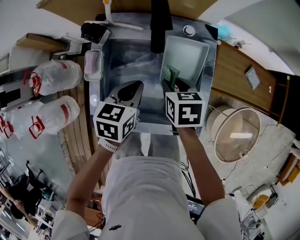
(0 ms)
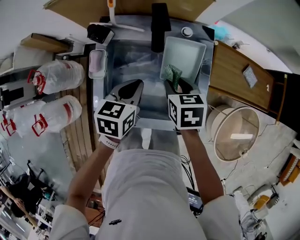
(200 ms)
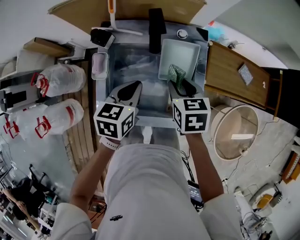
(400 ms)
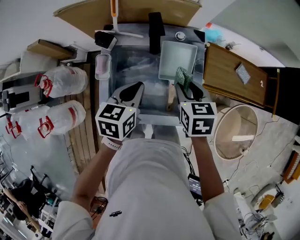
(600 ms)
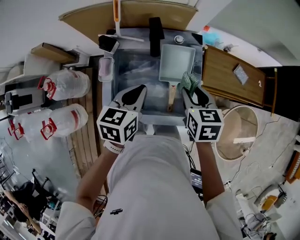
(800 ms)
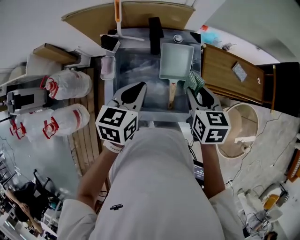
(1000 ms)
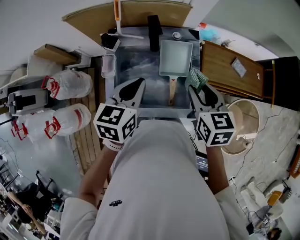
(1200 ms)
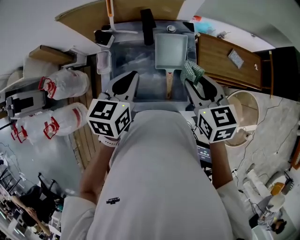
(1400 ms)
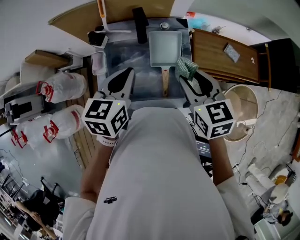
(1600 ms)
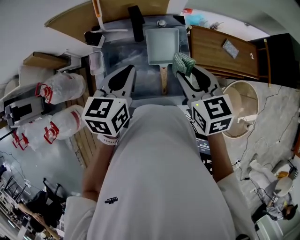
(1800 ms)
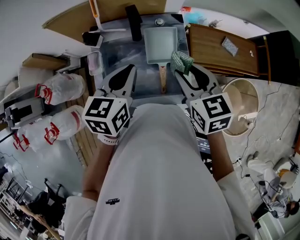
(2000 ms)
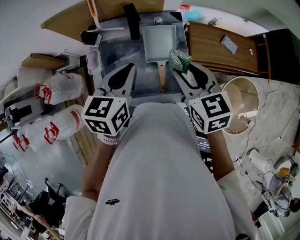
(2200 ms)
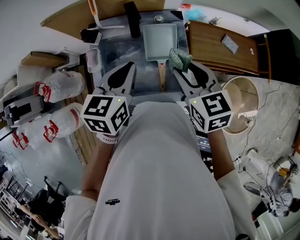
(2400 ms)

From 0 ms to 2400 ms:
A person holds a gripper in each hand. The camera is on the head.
From 0 ms to 1200 ms: Both grippers travel together upward, roughly 20 cm. The right gripper rotates some 20 degrees.
From 1200 ms to 2400 ms: The grippers stay close to where they were, moving slightly.

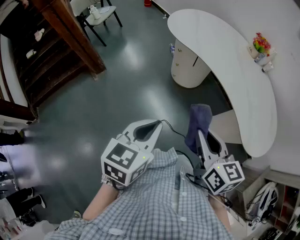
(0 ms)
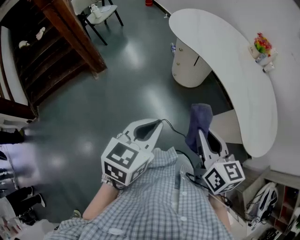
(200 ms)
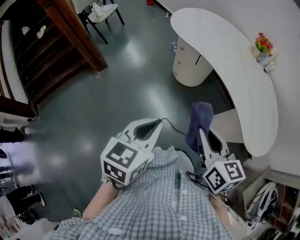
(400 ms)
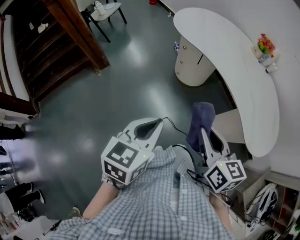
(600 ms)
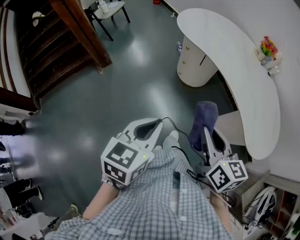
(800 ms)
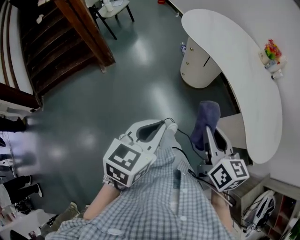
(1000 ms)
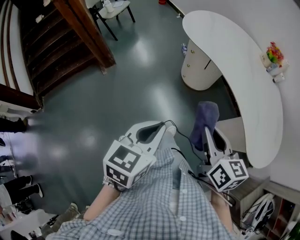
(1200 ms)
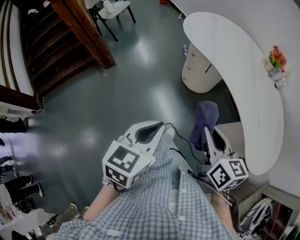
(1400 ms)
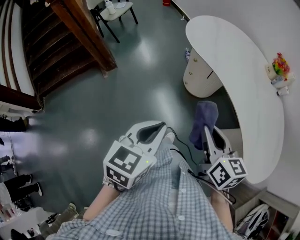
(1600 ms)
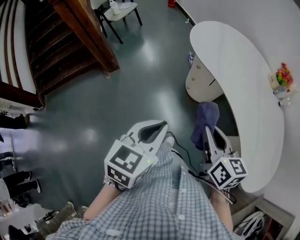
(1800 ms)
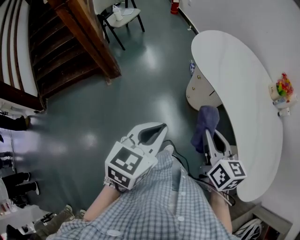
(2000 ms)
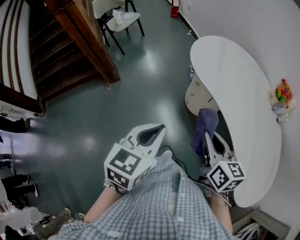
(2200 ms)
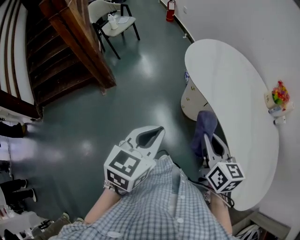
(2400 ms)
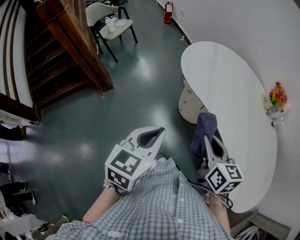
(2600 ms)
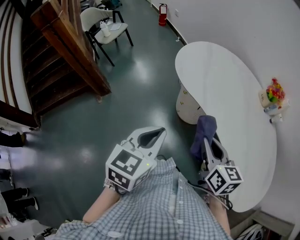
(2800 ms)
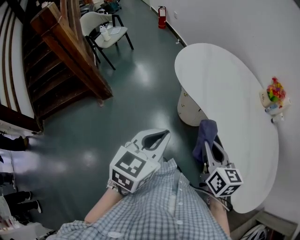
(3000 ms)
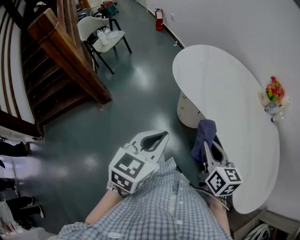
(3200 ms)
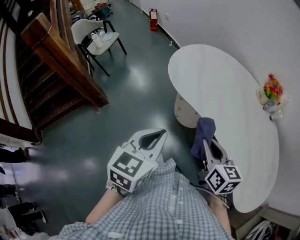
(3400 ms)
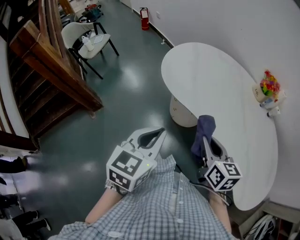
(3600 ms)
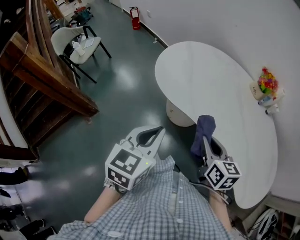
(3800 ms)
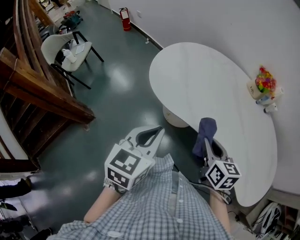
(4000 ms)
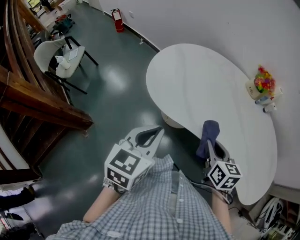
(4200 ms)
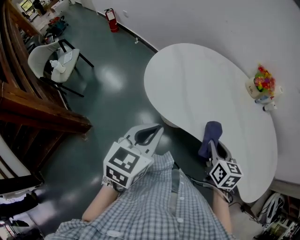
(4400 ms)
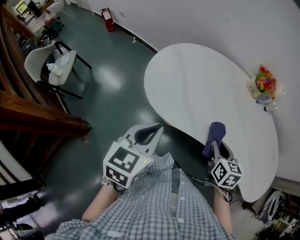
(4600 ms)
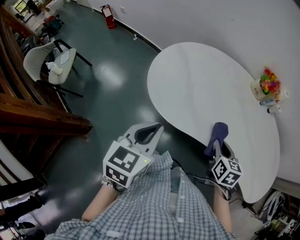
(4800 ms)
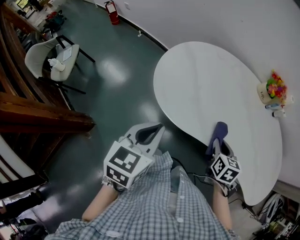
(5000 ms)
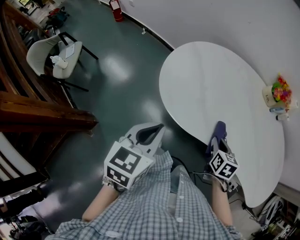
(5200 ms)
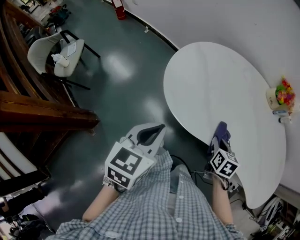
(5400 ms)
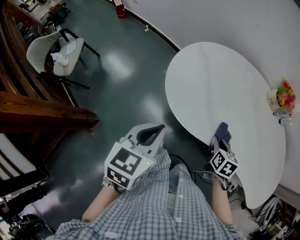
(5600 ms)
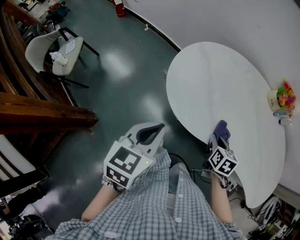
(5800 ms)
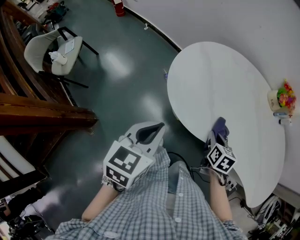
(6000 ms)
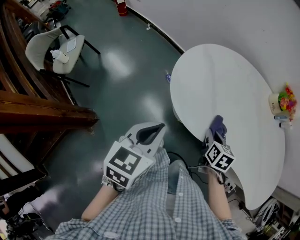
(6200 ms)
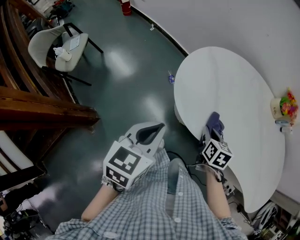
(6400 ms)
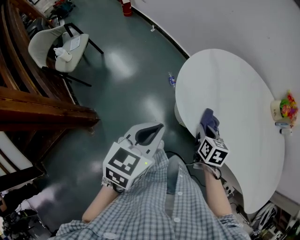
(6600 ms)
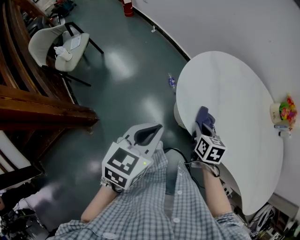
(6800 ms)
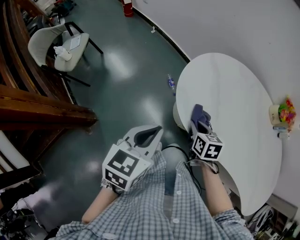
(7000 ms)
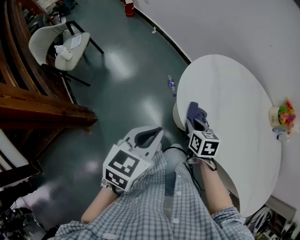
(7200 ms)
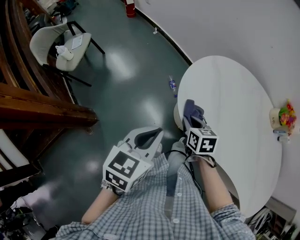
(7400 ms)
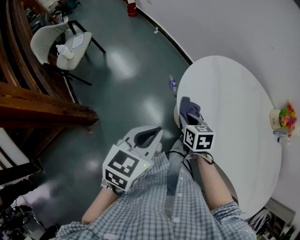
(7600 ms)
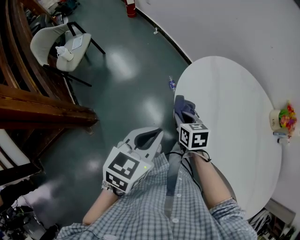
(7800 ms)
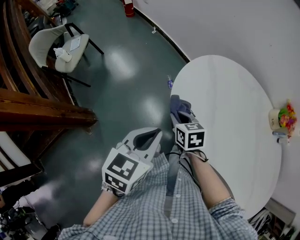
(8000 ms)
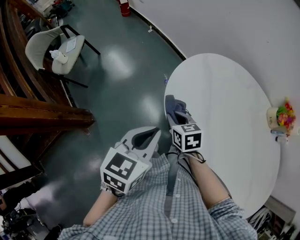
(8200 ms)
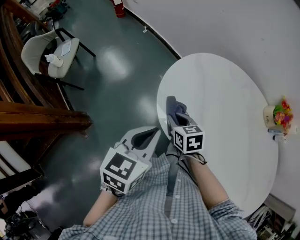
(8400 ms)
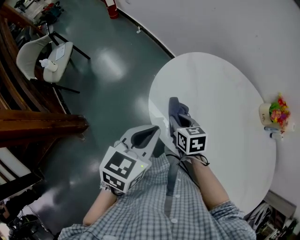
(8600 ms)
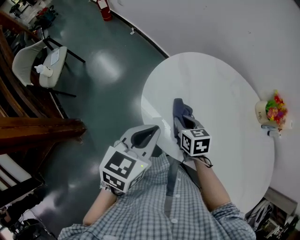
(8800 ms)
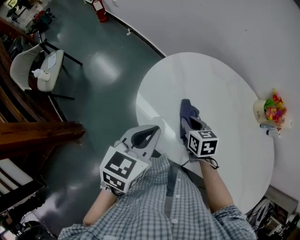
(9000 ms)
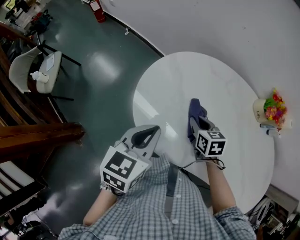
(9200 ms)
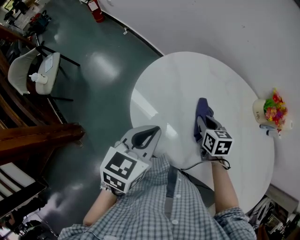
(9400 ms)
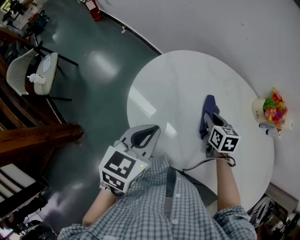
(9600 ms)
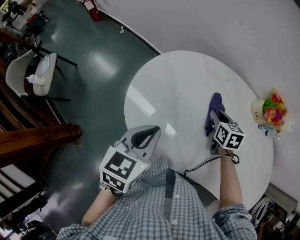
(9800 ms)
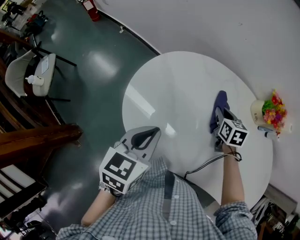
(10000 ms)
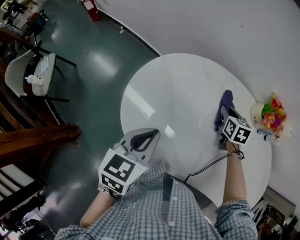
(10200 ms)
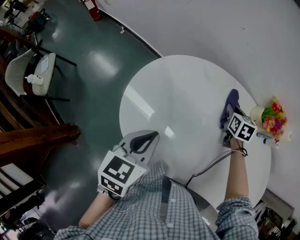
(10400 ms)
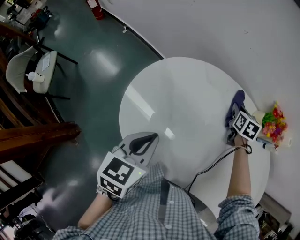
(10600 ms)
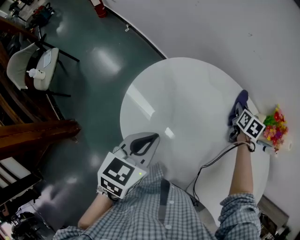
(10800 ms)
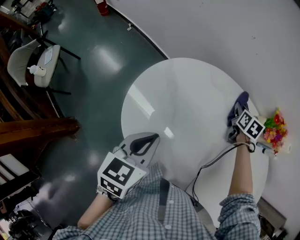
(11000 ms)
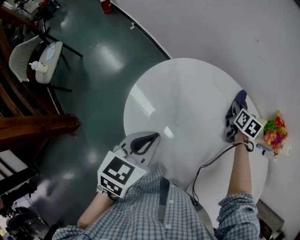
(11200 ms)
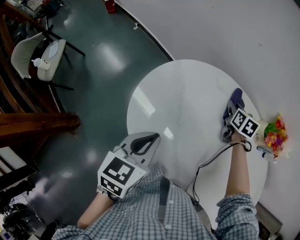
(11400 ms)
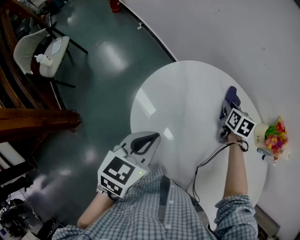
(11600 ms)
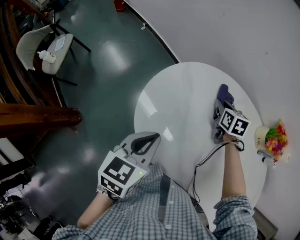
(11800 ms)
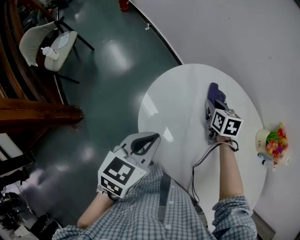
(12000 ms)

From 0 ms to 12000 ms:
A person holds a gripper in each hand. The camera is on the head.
From 0 ms to 1600 ms: The grippers both shift forward by some 10 cm.
From 1600 ms to 3000 ms: Both grippers move forward, some 15 cm.
From 3000 ms to 4400 ms: Both grippers move forward, roughly 20 cm. The left gripper swivels some 20 degrees. Meanwhile the right gripper rotates about 30 degrees.
From 4400 ms to 6000 ms: The right gripper travels to the left, downward and forward by about 20 cm; the left gripper goes approximately 15 cm to the left and forward.
From 6000 ms to 7600 ms: The right gripper travels to the left by approximately 20 cm, and changes its angle by some 30 degrees.
From 7600 ms to 9000 ms: The right gripper shifts some 15 cm to the right; the left gripper heads to the right and forward, covering about 15 cm.
From 9000 ms to 10400 ms: The right gripper moves to the right and forward, some 30 cm, and turns by about 30 degrees. Meanwhile the left gripper moves forward and to the right, about 10 cm.
From 10400 ms to 12000 ms: The right gripper goes approximately 20 cm to the left, and turns by some 20 degrees, while the left gripper changes place by roughly 5 cm.

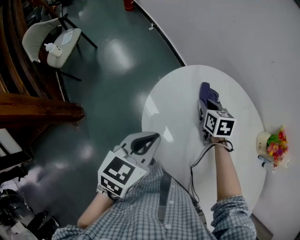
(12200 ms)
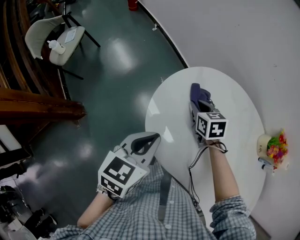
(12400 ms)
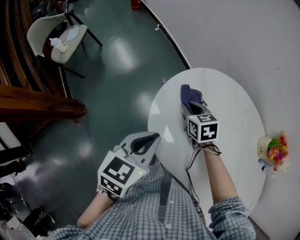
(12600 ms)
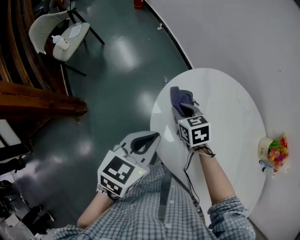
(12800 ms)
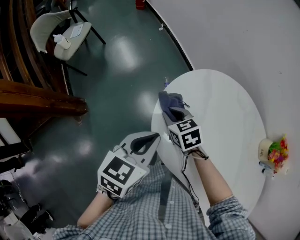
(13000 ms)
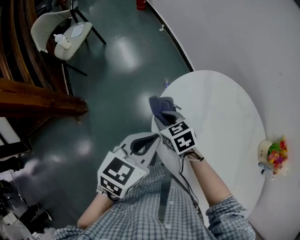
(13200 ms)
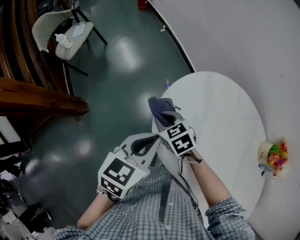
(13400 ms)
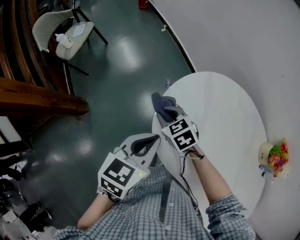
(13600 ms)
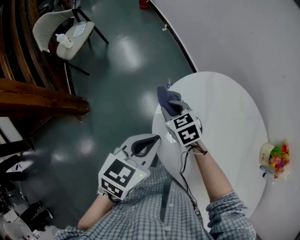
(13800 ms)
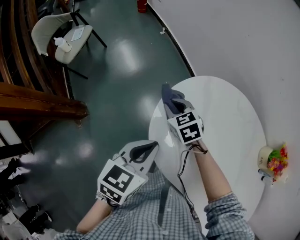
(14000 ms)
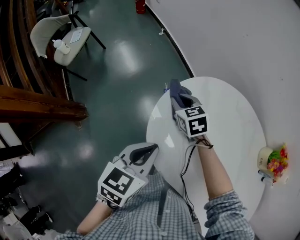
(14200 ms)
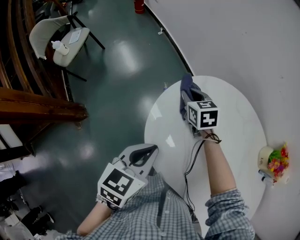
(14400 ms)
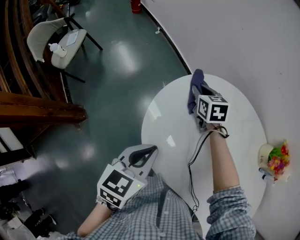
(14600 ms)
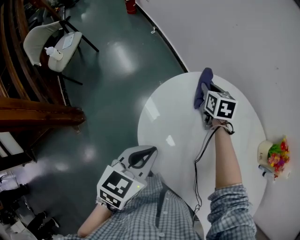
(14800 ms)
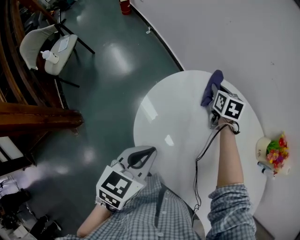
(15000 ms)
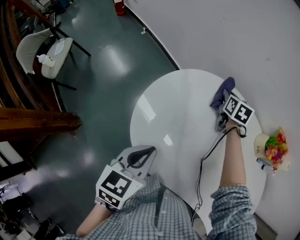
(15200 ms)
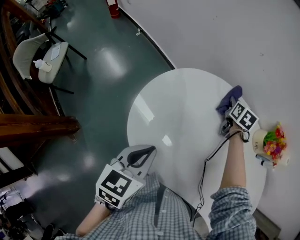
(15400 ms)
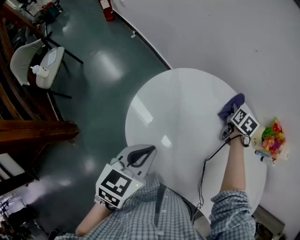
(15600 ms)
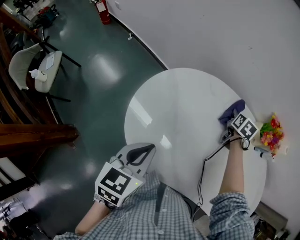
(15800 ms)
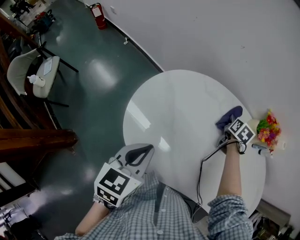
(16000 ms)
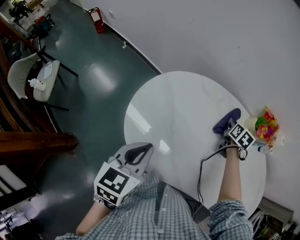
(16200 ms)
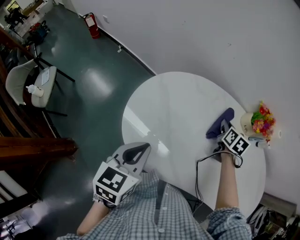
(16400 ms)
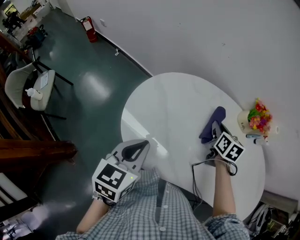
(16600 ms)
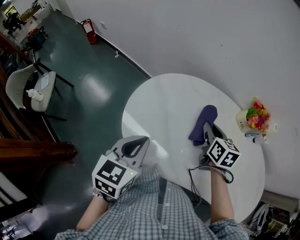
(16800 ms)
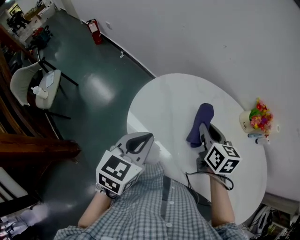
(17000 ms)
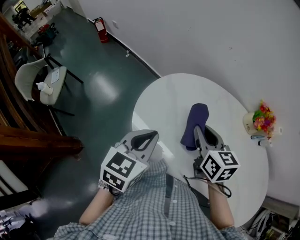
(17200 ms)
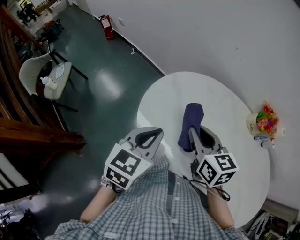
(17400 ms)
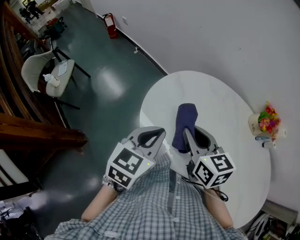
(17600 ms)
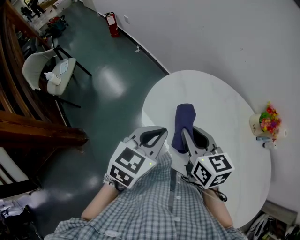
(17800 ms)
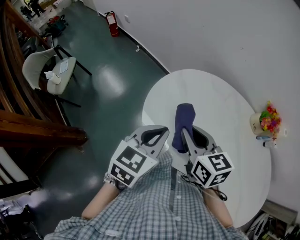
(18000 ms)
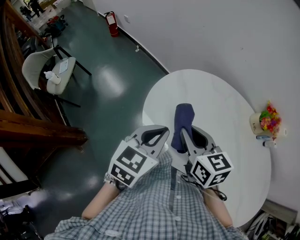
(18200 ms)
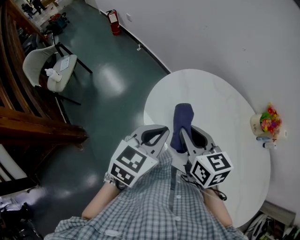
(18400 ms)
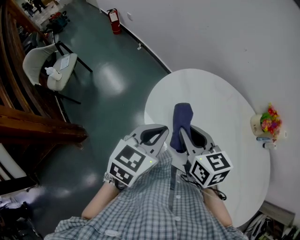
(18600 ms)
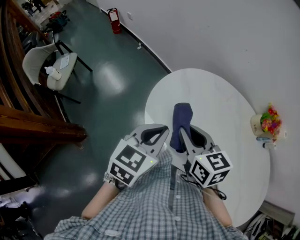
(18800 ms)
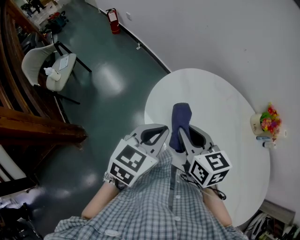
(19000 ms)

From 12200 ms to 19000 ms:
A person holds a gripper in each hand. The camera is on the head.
From 12200 ms to 13600 ms: The right gripper shifts roughly 25 cm to the left, and swivels roughly 40 degrees.
From 13600 ms to 15000 ms: The right gripper changes place by approximately 35 cm, and rotates roughly 50 degrees; the left gripper moves some 5 cm.
From 15000 ms to 16200 ms: The right gripper goes approximately 30 cm to the right, and changes its angle by about 40 degrees.
From 16200 ms to 17600 ms: The right gripper ends up some 40 cm from where it was, and rotates roughly 50 degrees.
From 17600 ms to 19000 ms: The grippers move only a little.

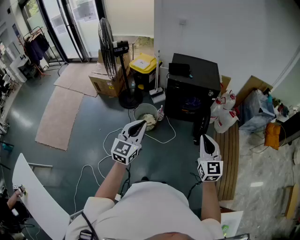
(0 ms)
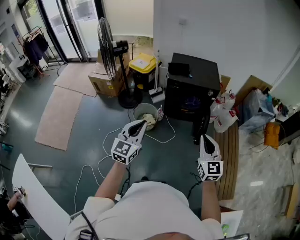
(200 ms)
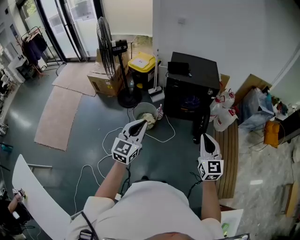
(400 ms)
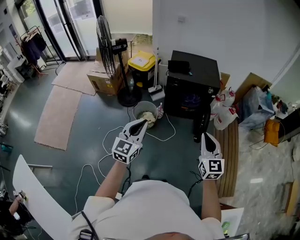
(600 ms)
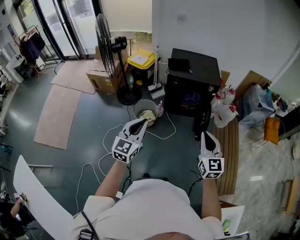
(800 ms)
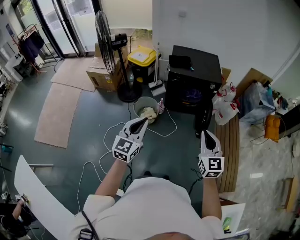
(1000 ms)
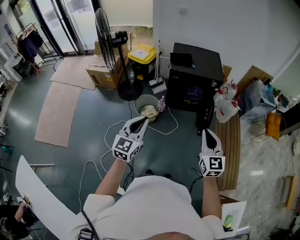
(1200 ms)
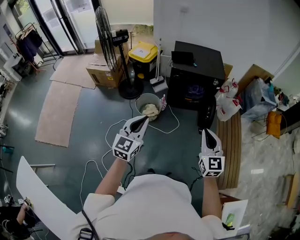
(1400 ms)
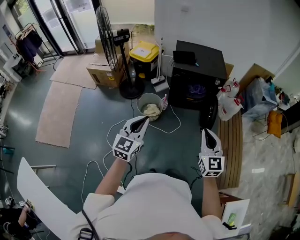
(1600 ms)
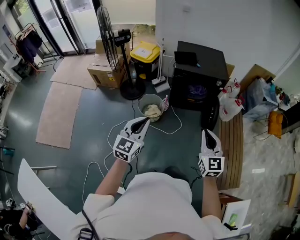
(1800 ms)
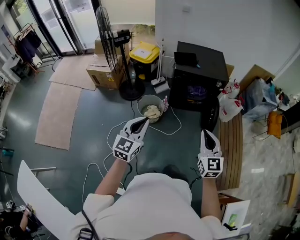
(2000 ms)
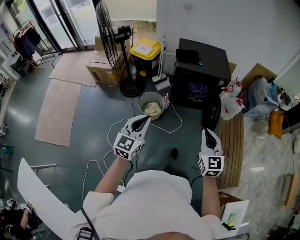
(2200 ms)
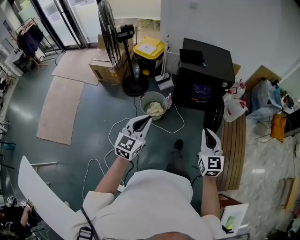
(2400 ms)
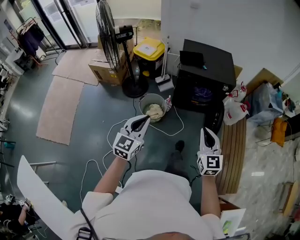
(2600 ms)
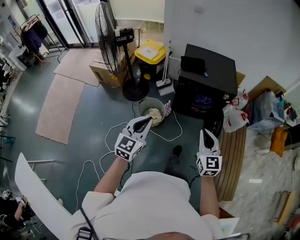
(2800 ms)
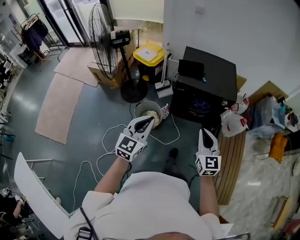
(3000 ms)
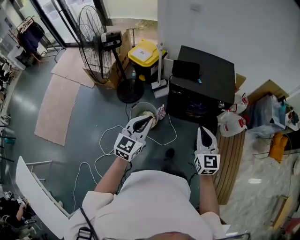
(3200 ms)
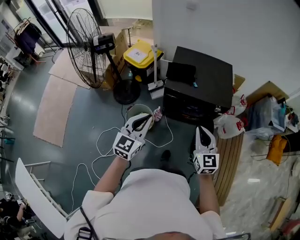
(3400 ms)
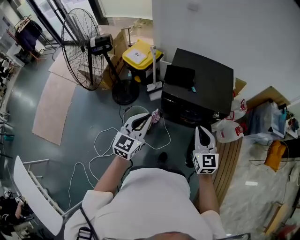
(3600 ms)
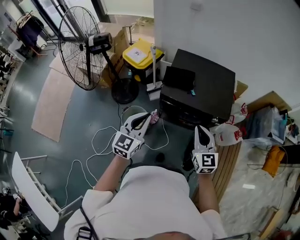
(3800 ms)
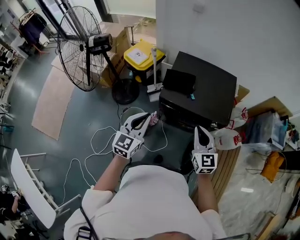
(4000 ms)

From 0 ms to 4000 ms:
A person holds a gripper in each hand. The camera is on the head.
From 0 ms to 1400 ms: The right gripper moves to the left, some 5 cm; the left gripper moves approximately 5 cm.
From 1400 ms to 2600 ms: The two grippers go some 10 cm forward.
From 2600 ms to 4000 ms: The left gripper travels forward and to the right by approximately 40 cm. Meanwhile the right gripper goes approximately 40 cm forward.
